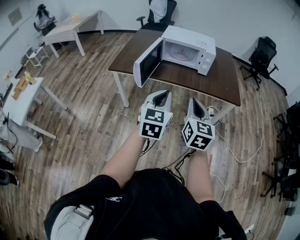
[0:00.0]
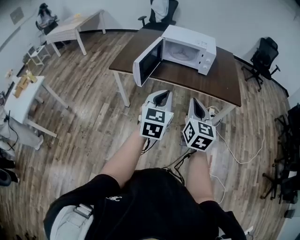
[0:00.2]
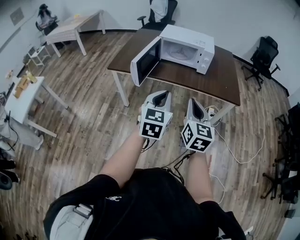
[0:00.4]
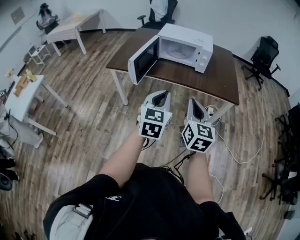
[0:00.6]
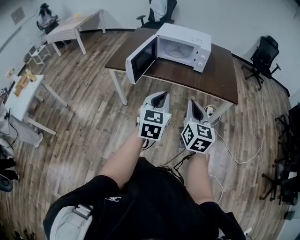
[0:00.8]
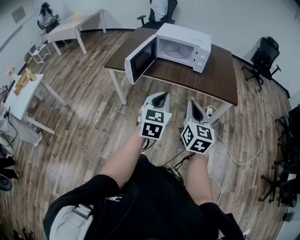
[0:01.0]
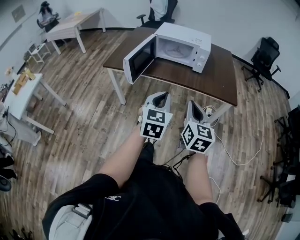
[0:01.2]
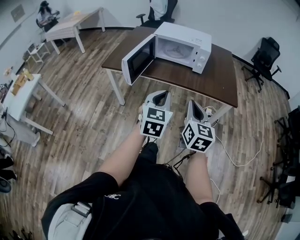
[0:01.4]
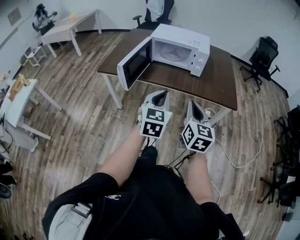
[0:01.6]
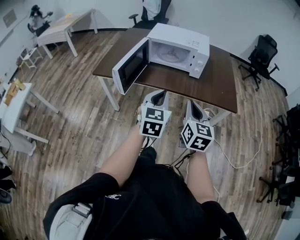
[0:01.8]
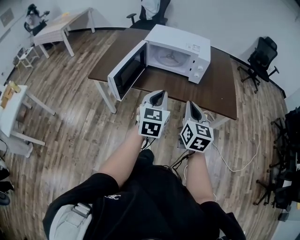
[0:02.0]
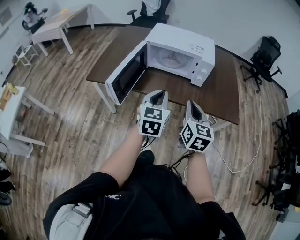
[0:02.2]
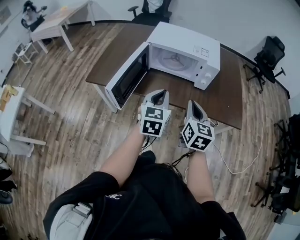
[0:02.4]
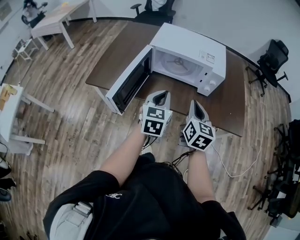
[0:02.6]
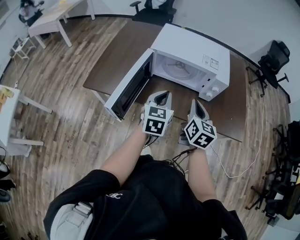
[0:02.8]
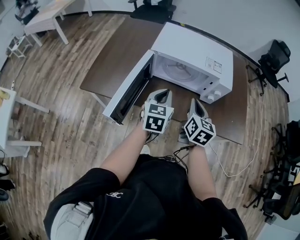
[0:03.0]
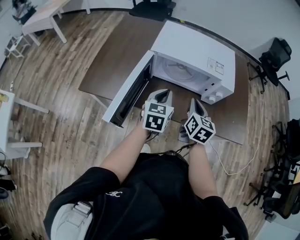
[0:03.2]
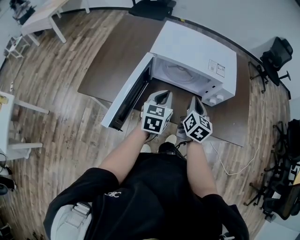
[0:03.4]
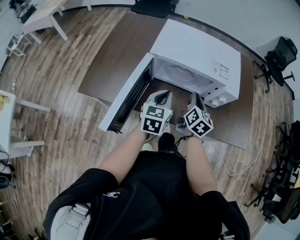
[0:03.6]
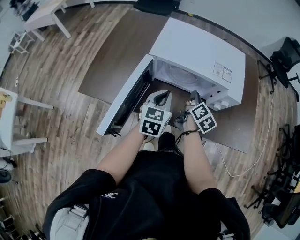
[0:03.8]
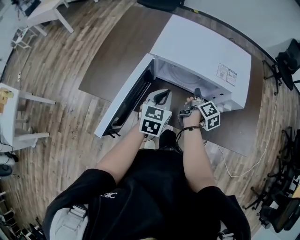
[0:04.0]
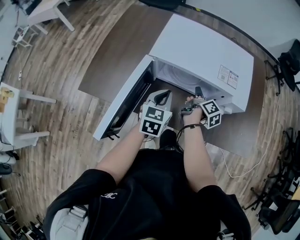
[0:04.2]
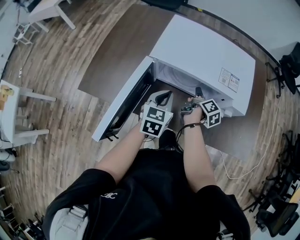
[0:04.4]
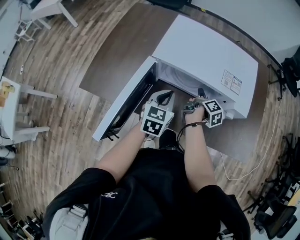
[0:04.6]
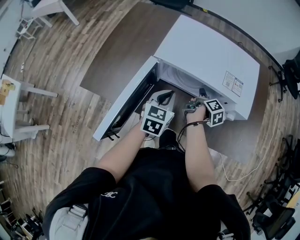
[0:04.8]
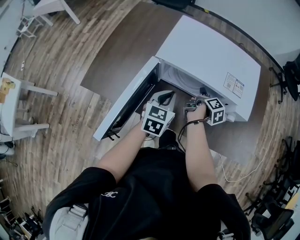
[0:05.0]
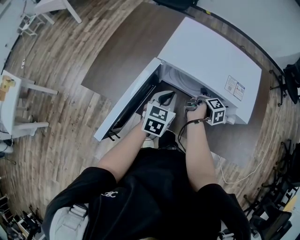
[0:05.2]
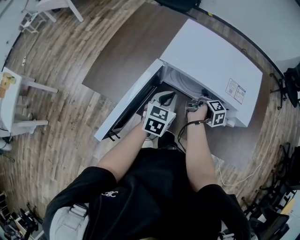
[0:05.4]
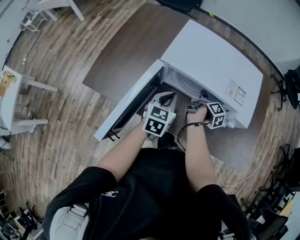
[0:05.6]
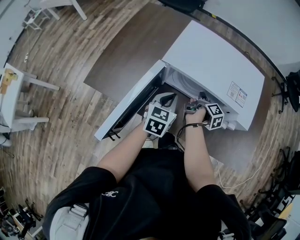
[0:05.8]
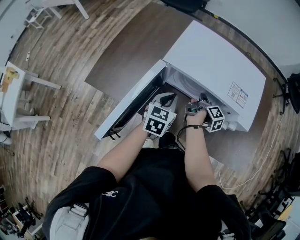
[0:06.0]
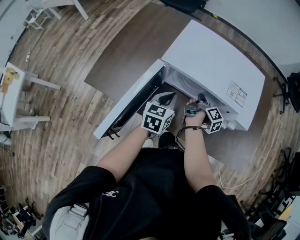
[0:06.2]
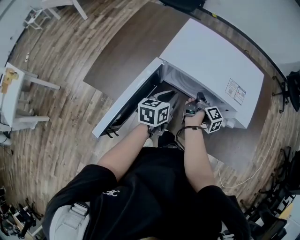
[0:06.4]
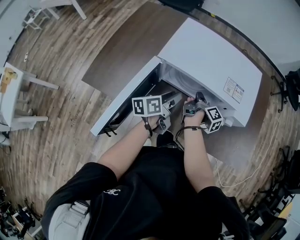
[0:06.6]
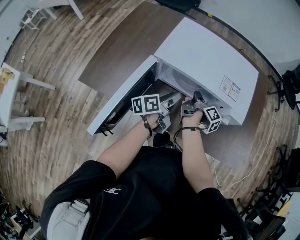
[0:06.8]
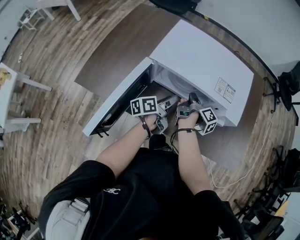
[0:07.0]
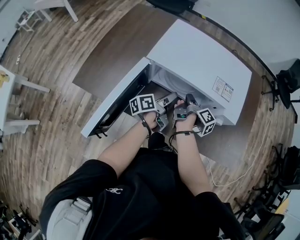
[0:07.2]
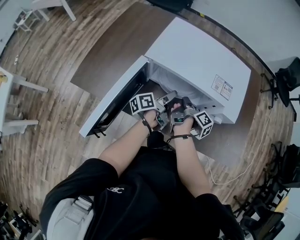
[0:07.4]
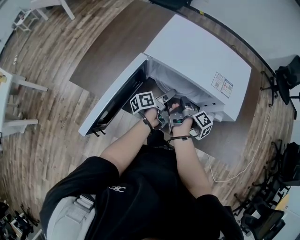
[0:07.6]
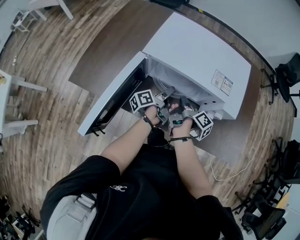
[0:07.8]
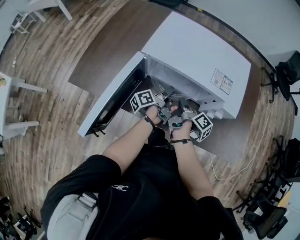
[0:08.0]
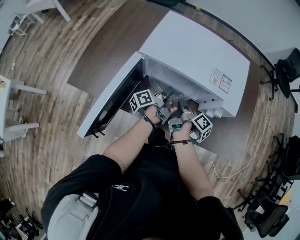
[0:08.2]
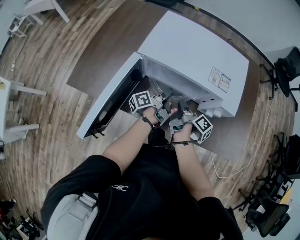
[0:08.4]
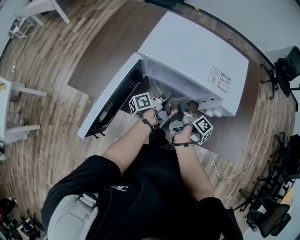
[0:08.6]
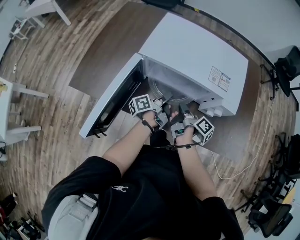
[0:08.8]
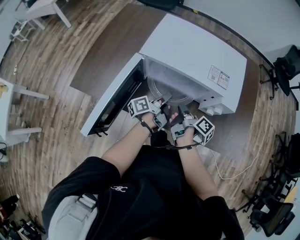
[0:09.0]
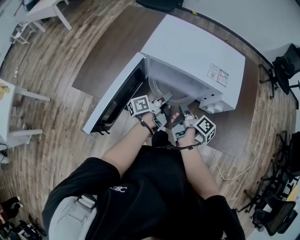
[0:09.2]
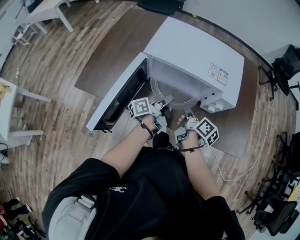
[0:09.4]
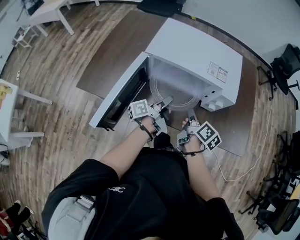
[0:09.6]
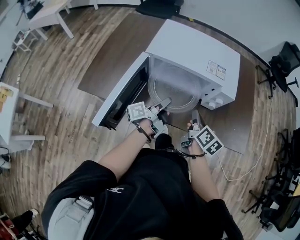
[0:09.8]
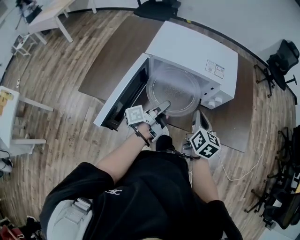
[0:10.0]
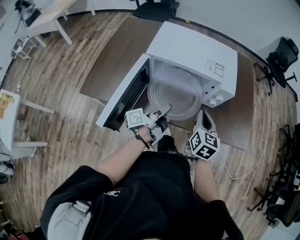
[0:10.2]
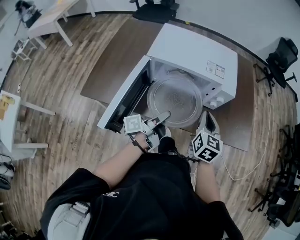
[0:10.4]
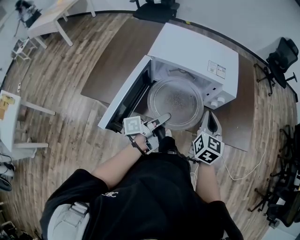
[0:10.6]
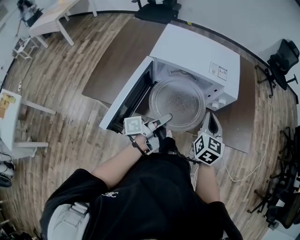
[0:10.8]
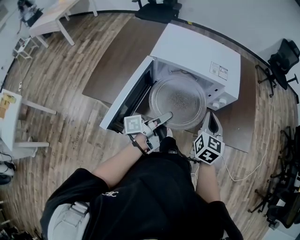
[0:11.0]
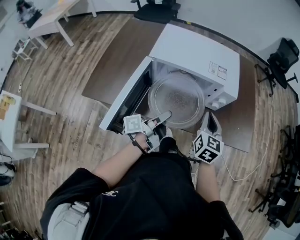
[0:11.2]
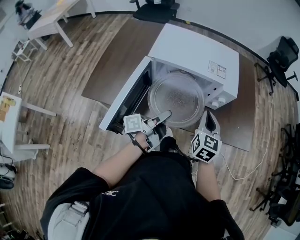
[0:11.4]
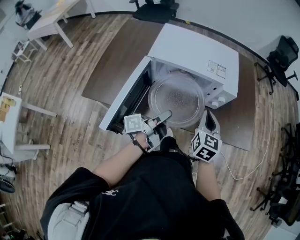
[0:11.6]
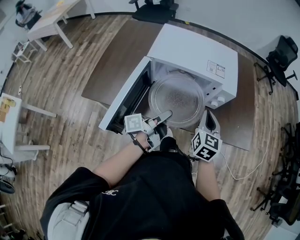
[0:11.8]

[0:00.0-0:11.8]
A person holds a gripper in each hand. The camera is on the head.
0.0 to 1.4 s: The two grippers go about 10 cm to the right.
1.4 to 3.0 s: The two grippers travel together, forward, some 40 cm.
3.0 to 4.4 s: The right gripper goes some 25 cm forward and downward, rotates around the line of its fingers by about 60 degrees, clockwise from behind, and opens its fingers. Meanwhile the left gripper moves forward and downward, approximately 10 cm.
4.4 to 6.0 s: The right gripper closes up.
6.0 to 7.4 s: The left gripper is displaced downward and to the right by roughly 10 cm, twists about 70 degrees counterclockwise, seen from behind, and opens its fingers. Meanwhile the right gripper shifts by some 5 cm.
7.4 to 8.8 s: The left gripper closes its fingers. The right gripper is displaced backward by about 5 cm.
8.8 to 10.4 s: The right gripper shifts some 20 cm upward, backward and to the right, and rolls counterclockwise, seen from behind, by some 80 degrees; the left gripper is displaced backward and upward by roughly 20 cm.
10.4 to 11.8 s: The grippers move only a little.

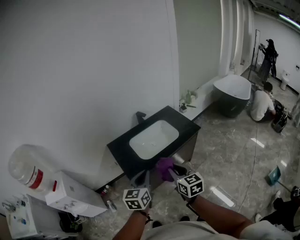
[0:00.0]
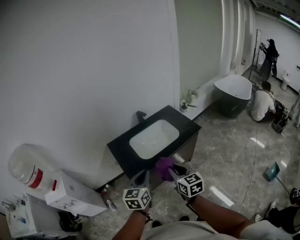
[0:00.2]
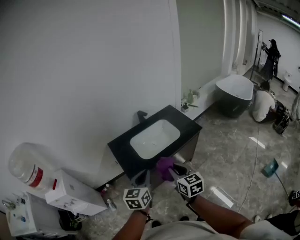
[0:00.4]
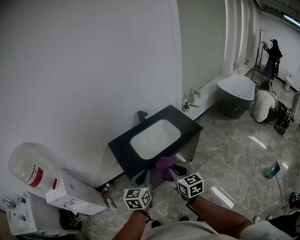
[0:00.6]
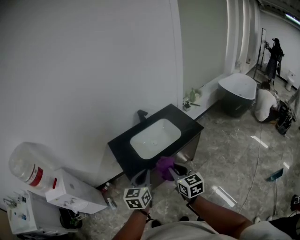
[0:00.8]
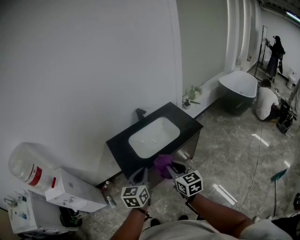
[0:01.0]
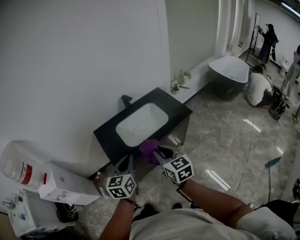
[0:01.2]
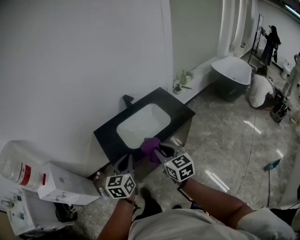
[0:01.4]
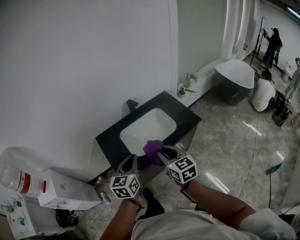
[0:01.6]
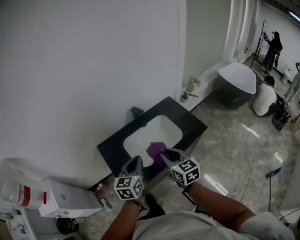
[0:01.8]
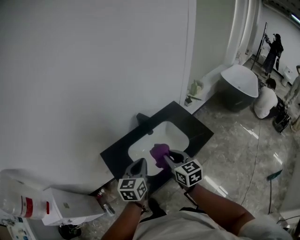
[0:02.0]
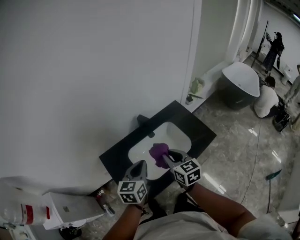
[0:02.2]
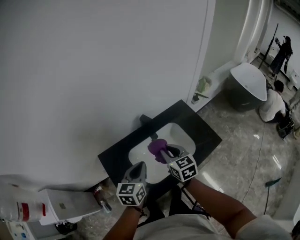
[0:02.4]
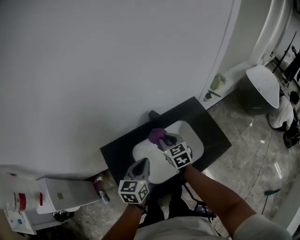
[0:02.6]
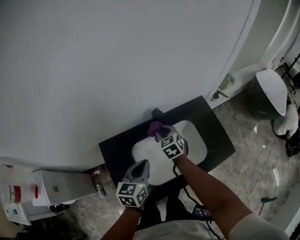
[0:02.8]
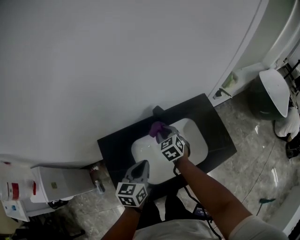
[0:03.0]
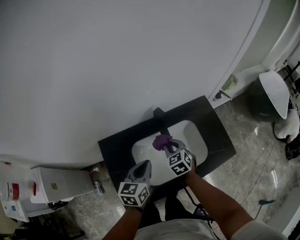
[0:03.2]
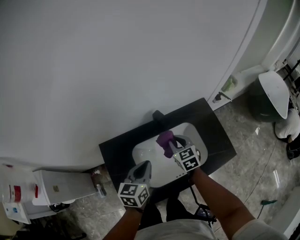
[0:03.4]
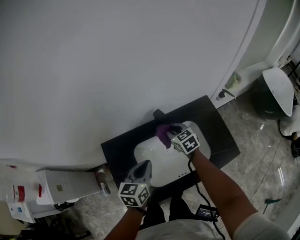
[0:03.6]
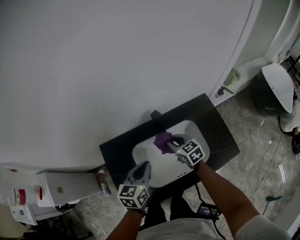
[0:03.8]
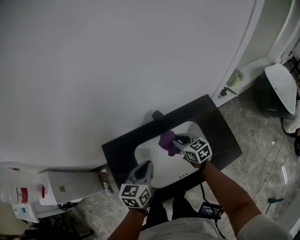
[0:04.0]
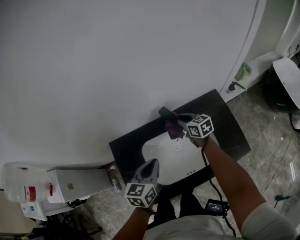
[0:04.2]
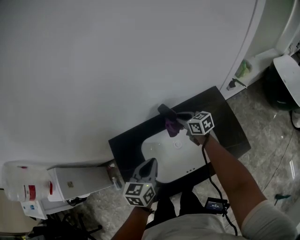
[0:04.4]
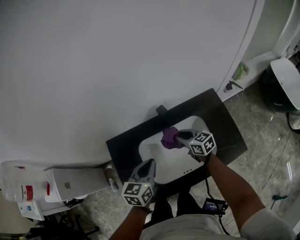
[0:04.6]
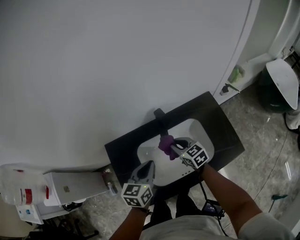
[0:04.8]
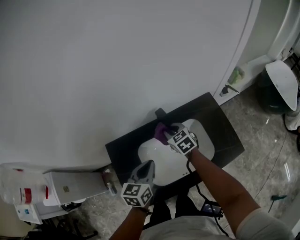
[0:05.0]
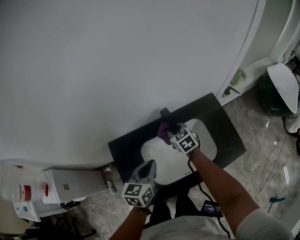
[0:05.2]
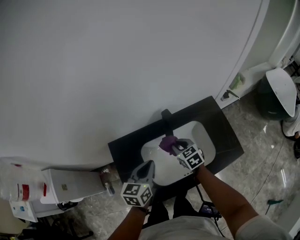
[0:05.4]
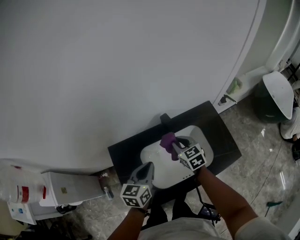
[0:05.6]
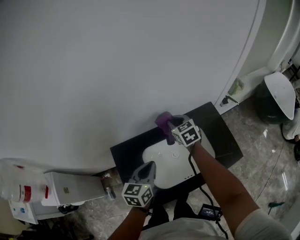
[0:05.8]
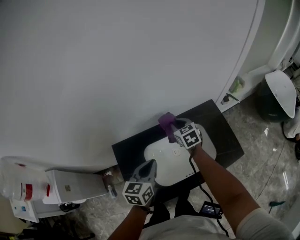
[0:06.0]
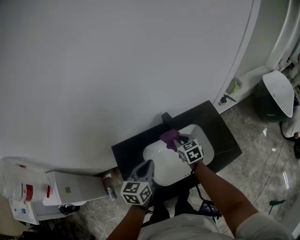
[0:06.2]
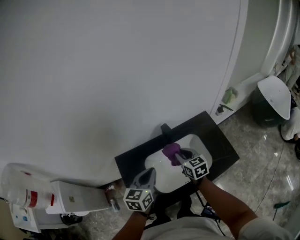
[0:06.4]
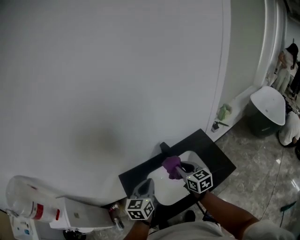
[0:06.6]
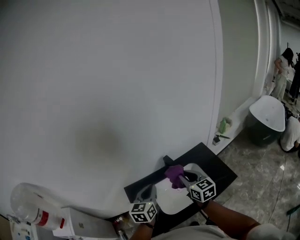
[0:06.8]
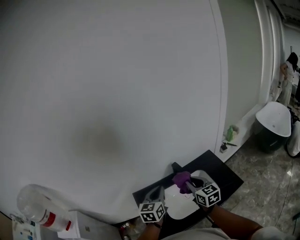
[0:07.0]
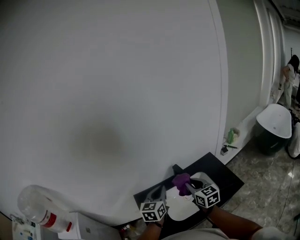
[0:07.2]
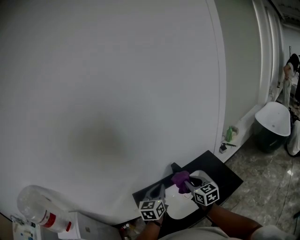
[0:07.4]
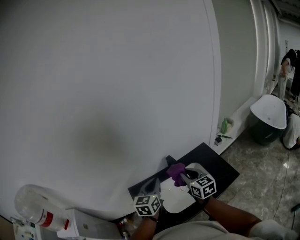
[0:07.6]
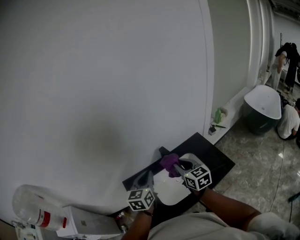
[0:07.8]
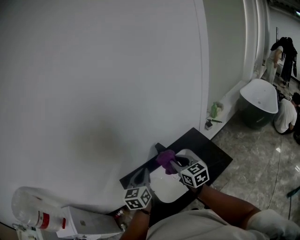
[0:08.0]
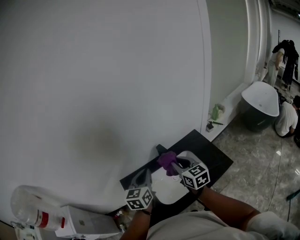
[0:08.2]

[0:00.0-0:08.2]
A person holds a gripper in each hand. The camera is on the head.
0.0 to 1.6 s: Both grippers move forward, approximately 15 cm.
1.6 to 3.2 s: The grippers both shift forward and downward by about 40 cm. The right gripper turns by about 40 degrees.
3.2 to 5.0 s: The right gripper goes forward and backward, some 10 cm each way, reversing 4 times.
5.0 to 6.6 s: The right gripper moves up and down over about 20 cm, changing direction 2 times, and swivels approximately 30 degrees, while the left gripper goes approximately 15 cm upward.
6.6 to 8.2 s: The right gripper goes about 5 cm upward. The left gripper changes place by roughly 5 cm.

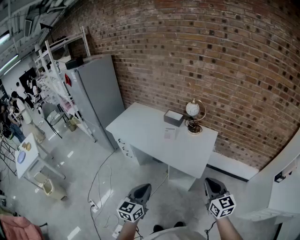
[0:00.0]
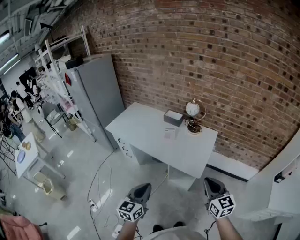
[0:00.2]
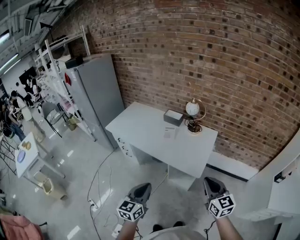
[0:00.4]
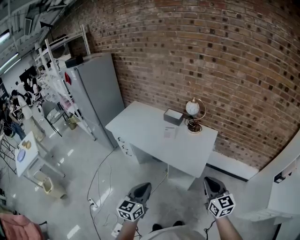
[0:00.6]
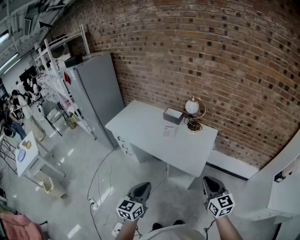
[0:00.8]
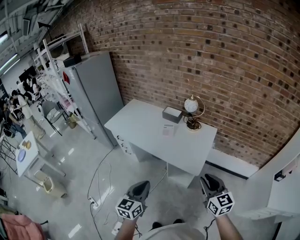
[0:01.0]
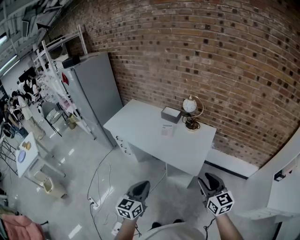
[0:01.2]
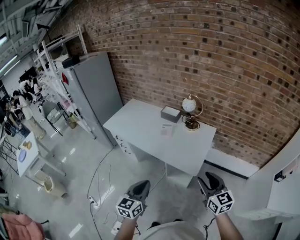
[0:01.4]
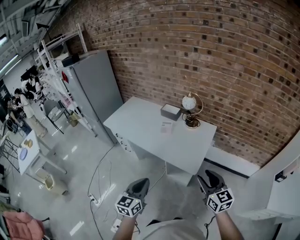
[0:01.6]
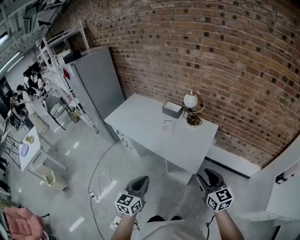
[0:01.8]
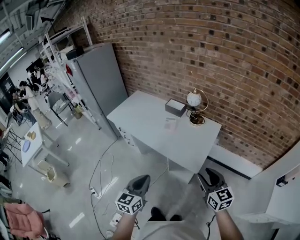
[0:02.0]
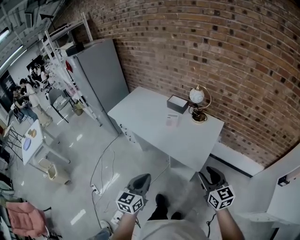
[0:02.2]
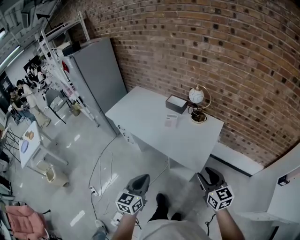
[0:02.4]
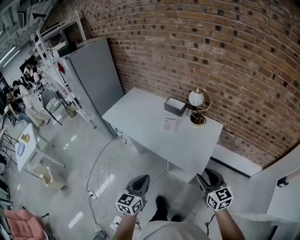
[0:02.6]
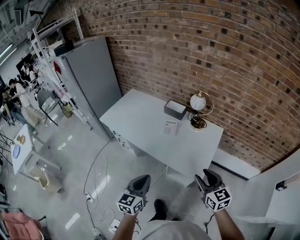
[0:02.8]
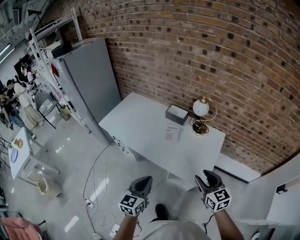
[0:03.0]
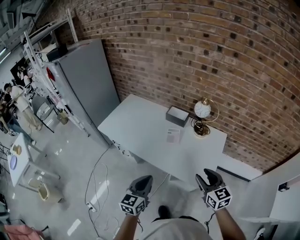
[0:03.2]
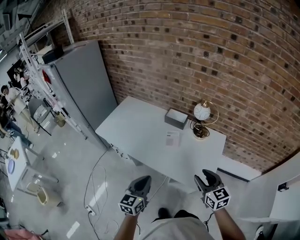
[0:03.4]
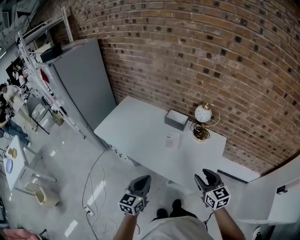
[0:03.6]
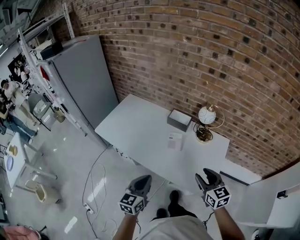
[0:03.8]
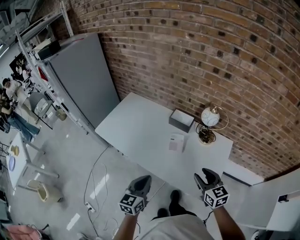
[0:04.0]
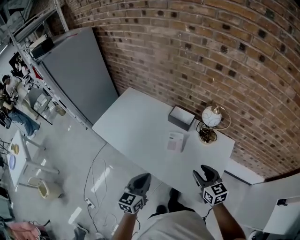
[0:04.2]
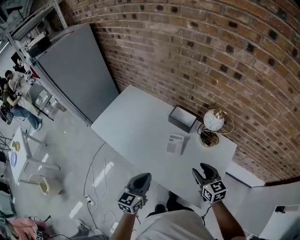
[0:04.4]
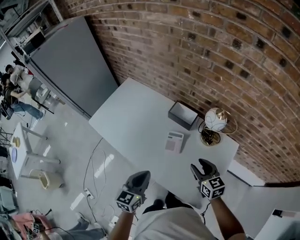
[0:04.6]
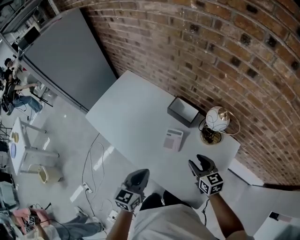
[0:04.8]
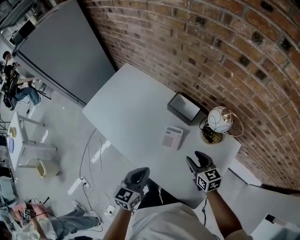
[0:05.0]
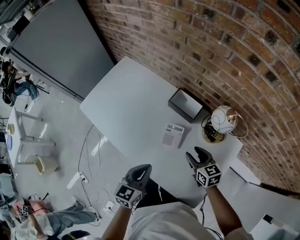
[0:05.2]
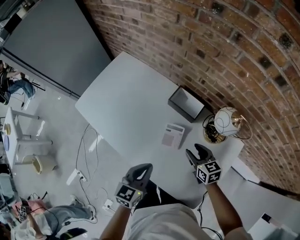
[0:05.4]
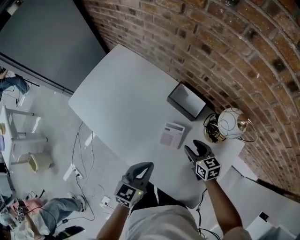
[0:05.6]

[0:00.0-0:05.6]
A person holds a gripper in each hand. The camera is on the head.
0.0 to 1.4 s: The right gripper opens up.
1.4 to 2.8 s: Both grippers move forward, roughly 15 cm.
2.8 to 4.2 s: Both grippers move forward, roughly 25 cm.
4.2 to 5.6 s: The left gripper goes about 20 cm forward, downward and to the right. Meanwhile the right gripper shifts about 30 cm forward and downward, and turns by about 20 degrees.
